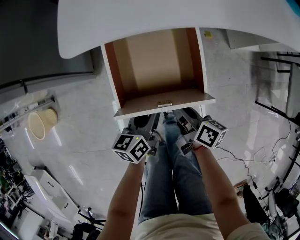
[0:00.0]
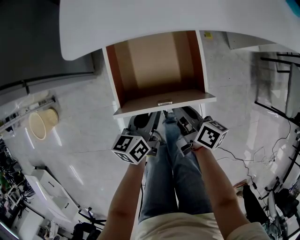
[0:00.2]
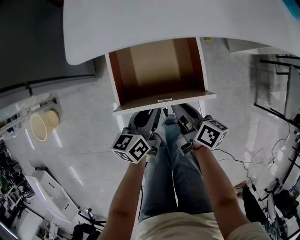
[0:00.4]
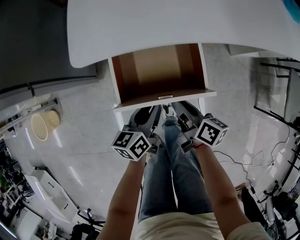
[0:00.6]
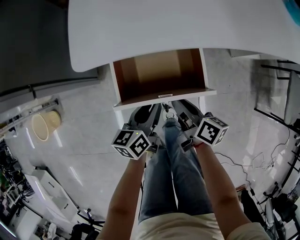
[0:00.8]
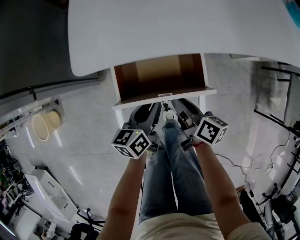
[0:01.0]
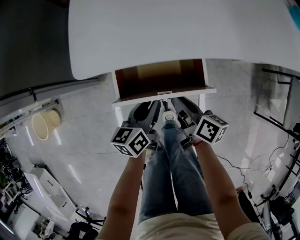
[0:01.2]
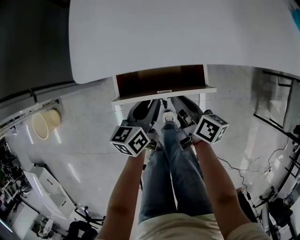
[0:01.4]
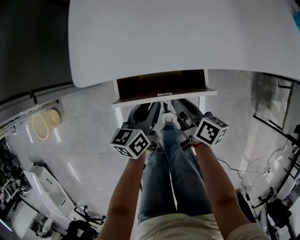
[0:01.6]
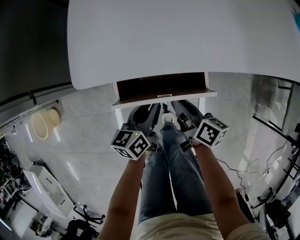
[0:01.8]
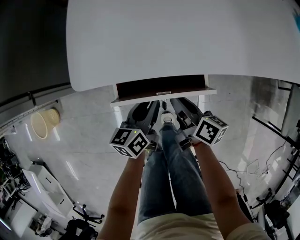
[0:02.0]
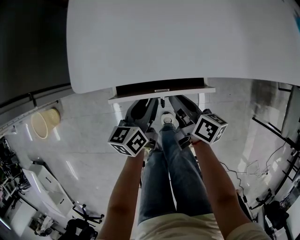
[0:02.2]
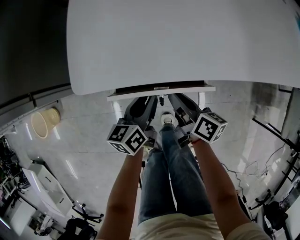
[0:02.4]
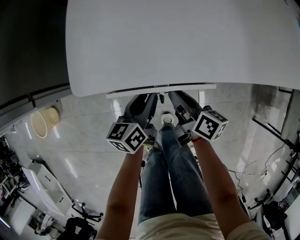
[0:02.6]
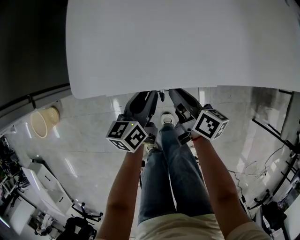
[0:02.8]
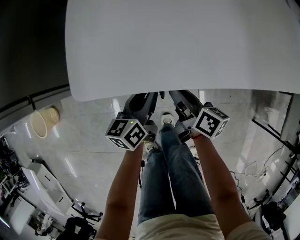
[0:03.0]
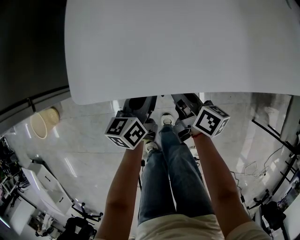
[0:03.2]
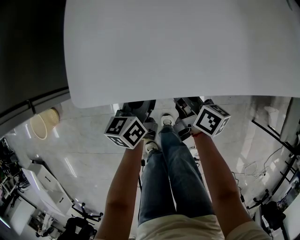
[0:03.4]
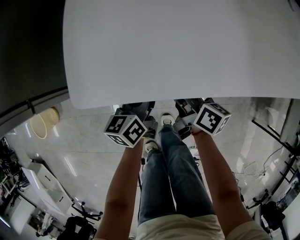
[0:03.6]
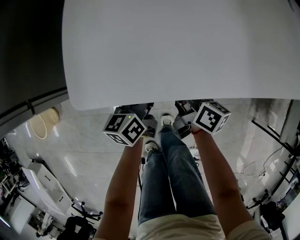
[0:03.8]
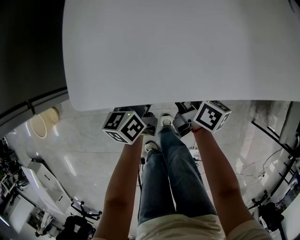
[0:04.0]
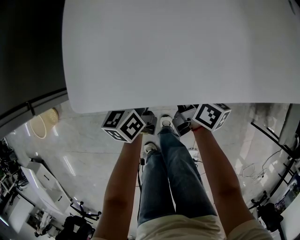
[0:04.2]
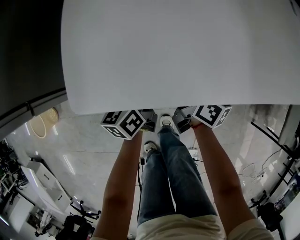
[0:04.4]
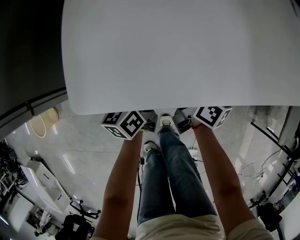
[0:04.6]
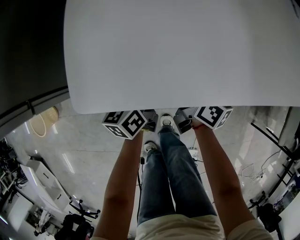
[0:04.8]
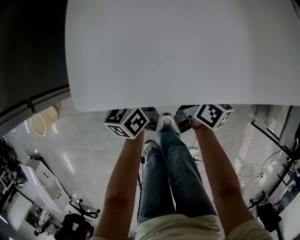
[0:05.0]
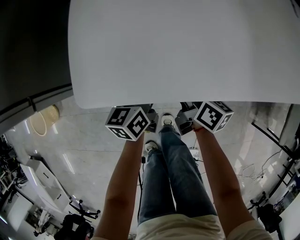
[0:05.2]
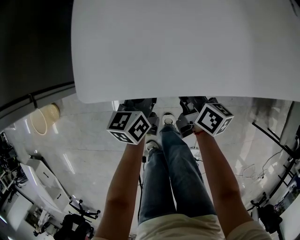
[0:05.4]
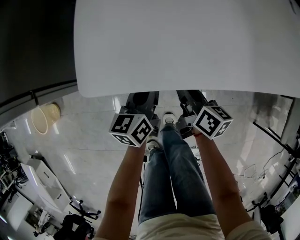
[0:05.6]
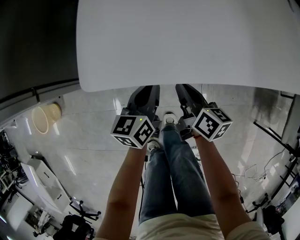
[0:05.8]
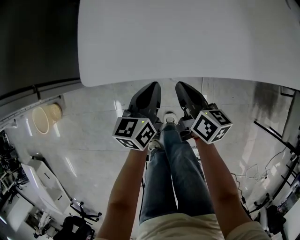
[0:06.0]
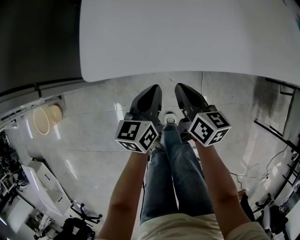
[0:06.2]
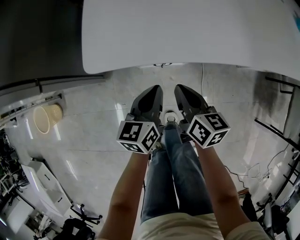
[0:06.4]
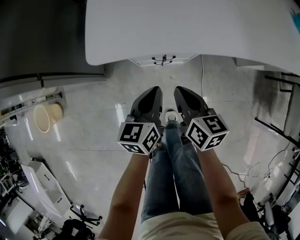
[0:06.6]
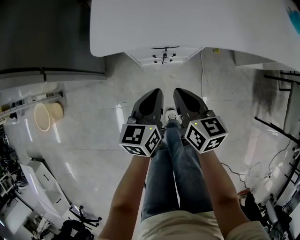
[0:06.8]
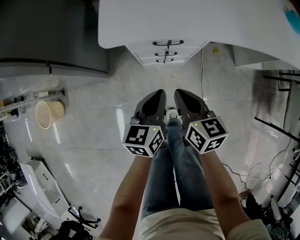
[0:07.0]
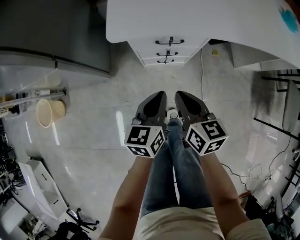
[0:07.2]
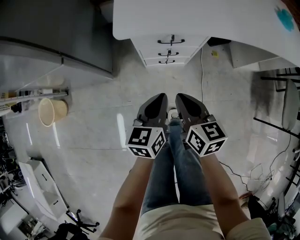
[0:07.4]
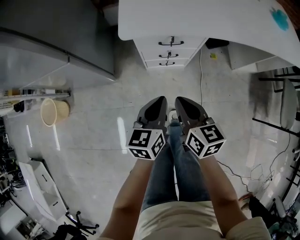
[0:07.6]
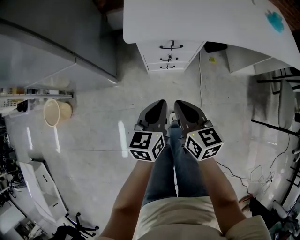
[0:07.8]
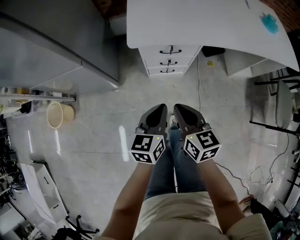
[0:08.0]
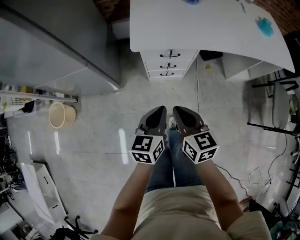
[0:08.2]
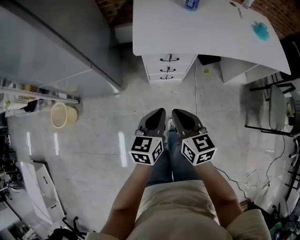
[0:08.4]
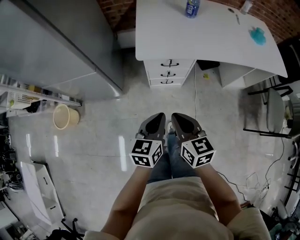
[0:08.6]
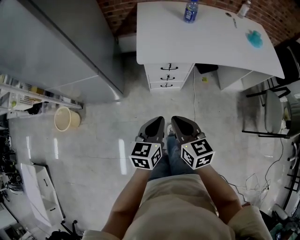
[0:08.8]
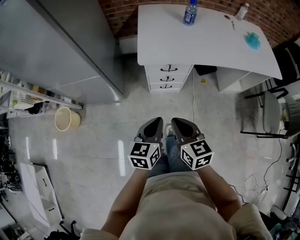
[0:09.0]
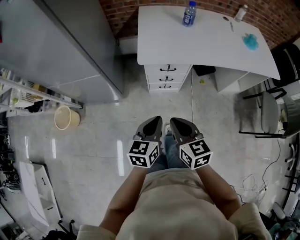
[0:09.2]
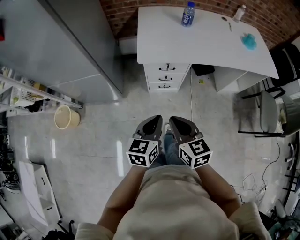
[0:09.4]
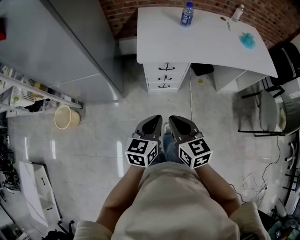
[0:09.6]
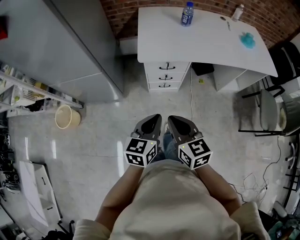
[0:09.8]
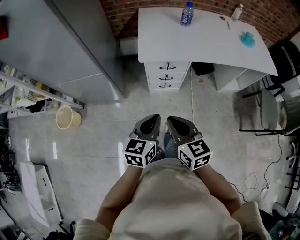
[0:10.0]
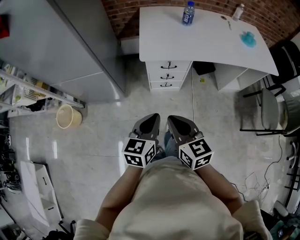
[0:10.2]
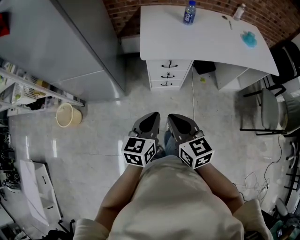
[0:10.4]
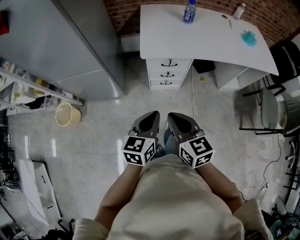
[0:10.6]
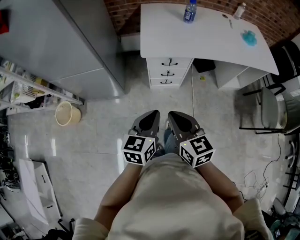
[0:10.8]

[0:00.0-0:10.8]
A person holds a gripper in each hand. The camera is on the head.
0.0 to 1.6 s: The two grippers go approximately 10 cm forward.
1.6 to 3.0 s: The grippers both shift forward by about 10 cm.
3.0 to 4.6 s: The right gripper ends up some 5 cm from where it was. Meanwhile the left gripper ends up about 5 cm from where it was.
4.6 to 6.2 s: Both grippers travel together backward, roughly 10 cm. The left gripper closes its fingers. The right gripper closes up.
6.2 to 7.8 s: The grippers both shift backward and upward by approximately 20 cm.
7.8 to 9.2 s: Both grippers travel together upward and backward, about 20 cm.
9.2 to 10.8 s: The left gripper moves roughly 5 cm. Meanwhile the right gripper changes place by roughly 5 cm.

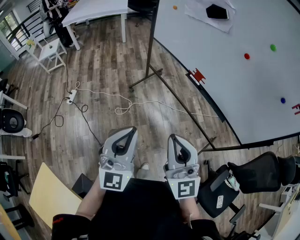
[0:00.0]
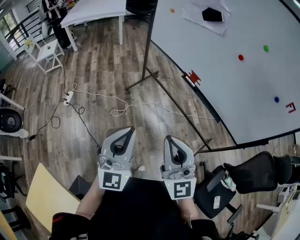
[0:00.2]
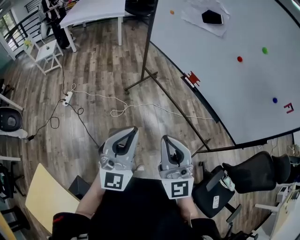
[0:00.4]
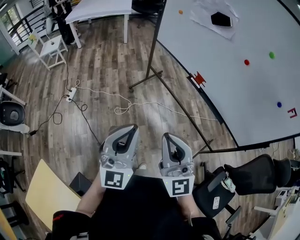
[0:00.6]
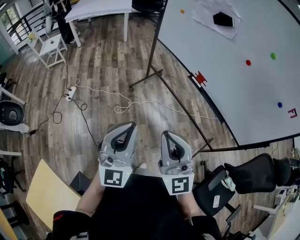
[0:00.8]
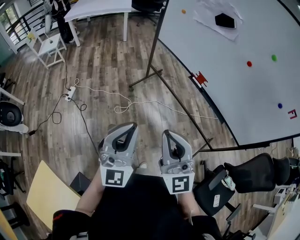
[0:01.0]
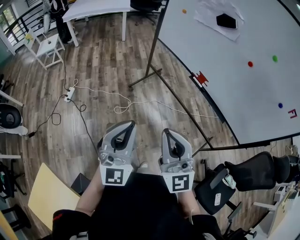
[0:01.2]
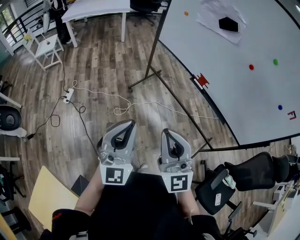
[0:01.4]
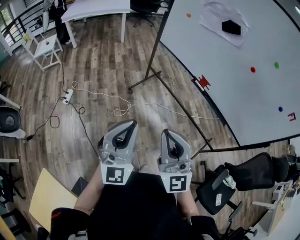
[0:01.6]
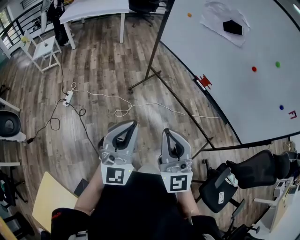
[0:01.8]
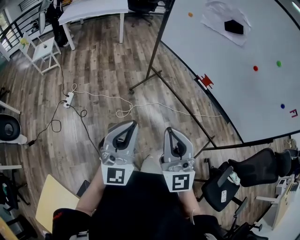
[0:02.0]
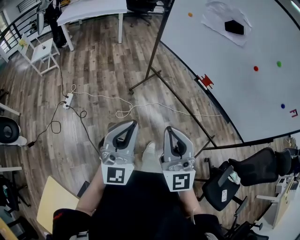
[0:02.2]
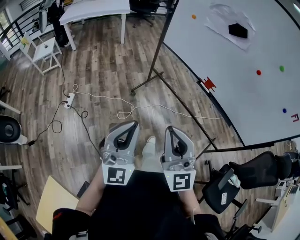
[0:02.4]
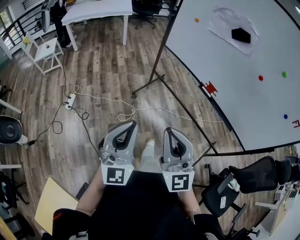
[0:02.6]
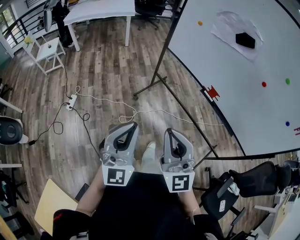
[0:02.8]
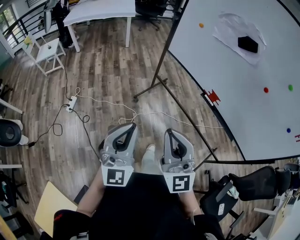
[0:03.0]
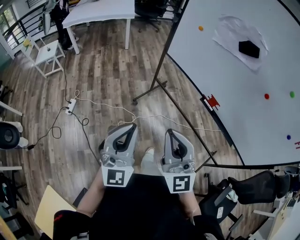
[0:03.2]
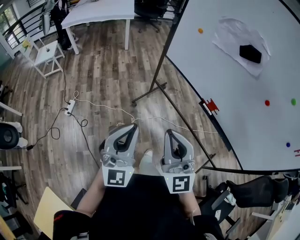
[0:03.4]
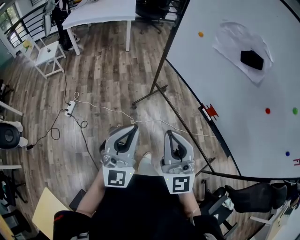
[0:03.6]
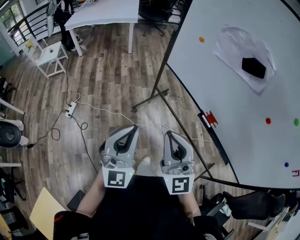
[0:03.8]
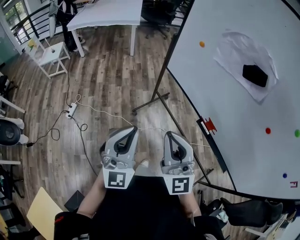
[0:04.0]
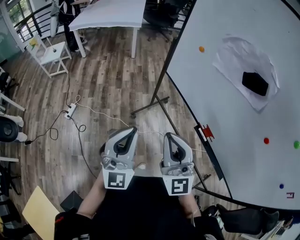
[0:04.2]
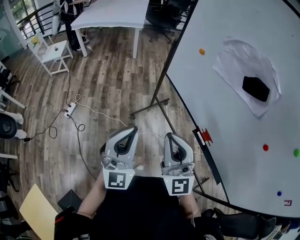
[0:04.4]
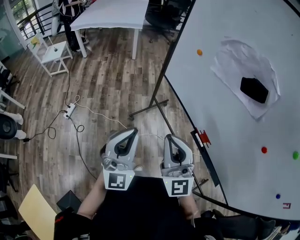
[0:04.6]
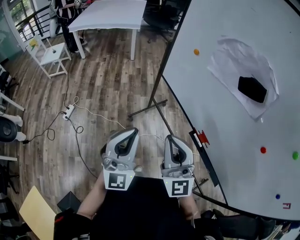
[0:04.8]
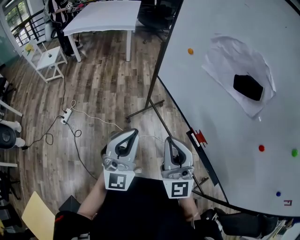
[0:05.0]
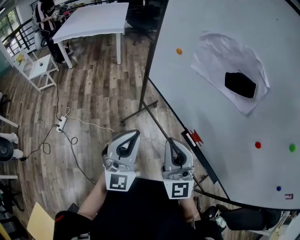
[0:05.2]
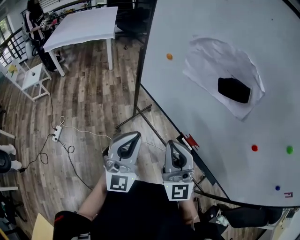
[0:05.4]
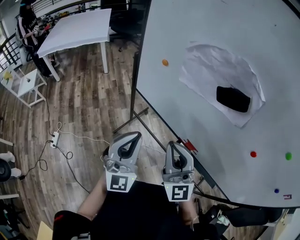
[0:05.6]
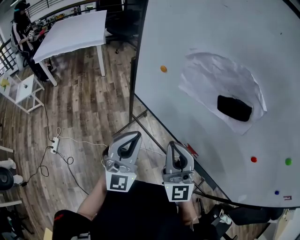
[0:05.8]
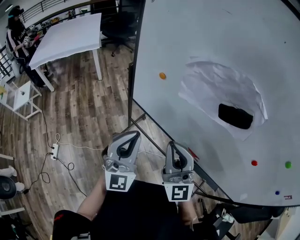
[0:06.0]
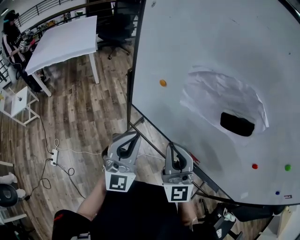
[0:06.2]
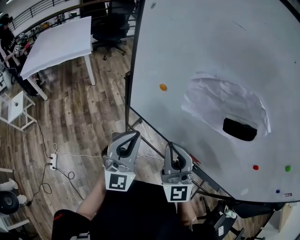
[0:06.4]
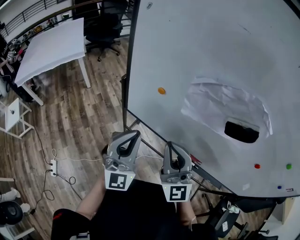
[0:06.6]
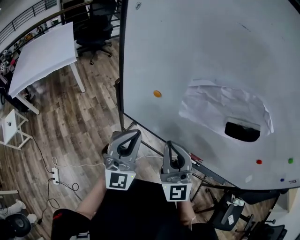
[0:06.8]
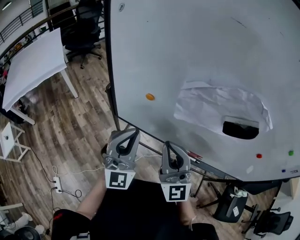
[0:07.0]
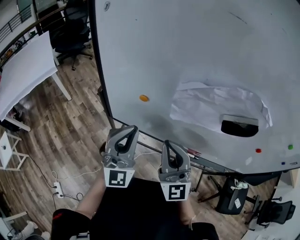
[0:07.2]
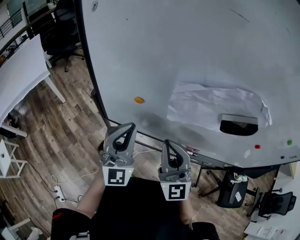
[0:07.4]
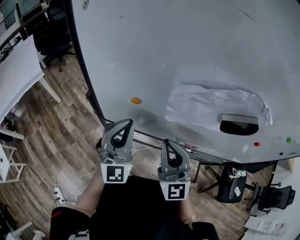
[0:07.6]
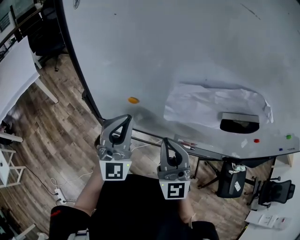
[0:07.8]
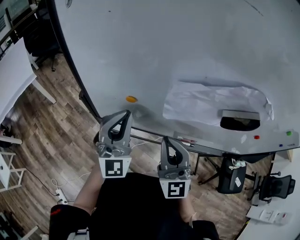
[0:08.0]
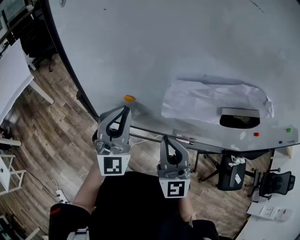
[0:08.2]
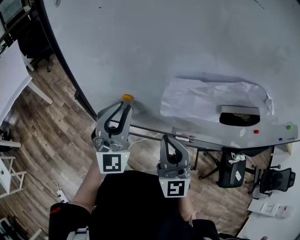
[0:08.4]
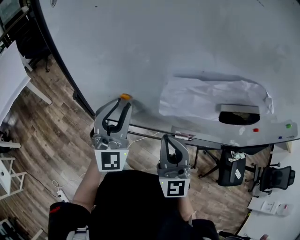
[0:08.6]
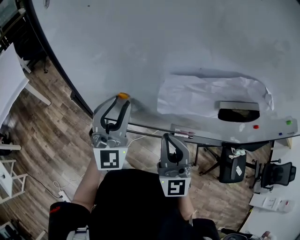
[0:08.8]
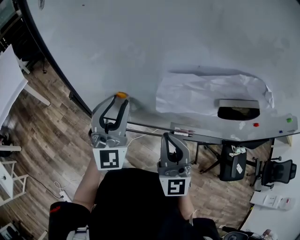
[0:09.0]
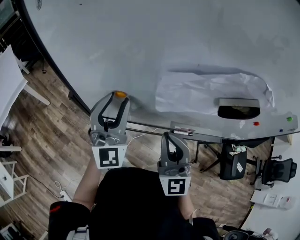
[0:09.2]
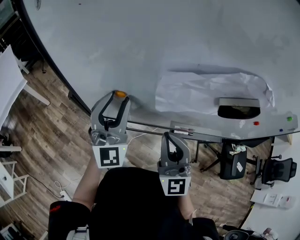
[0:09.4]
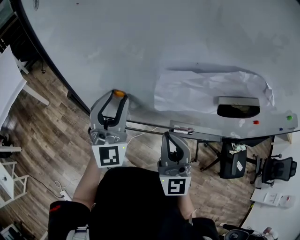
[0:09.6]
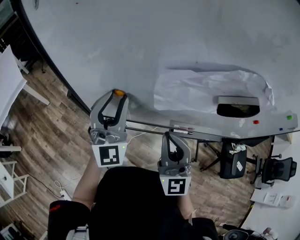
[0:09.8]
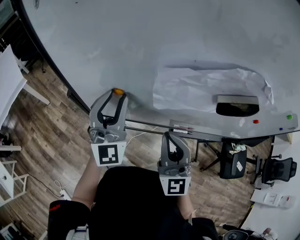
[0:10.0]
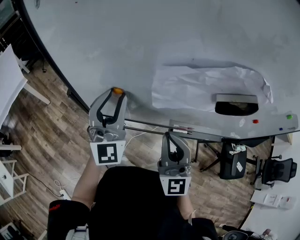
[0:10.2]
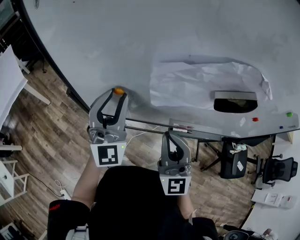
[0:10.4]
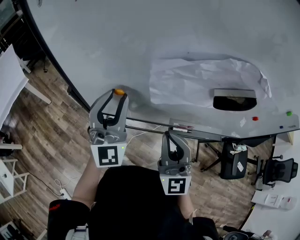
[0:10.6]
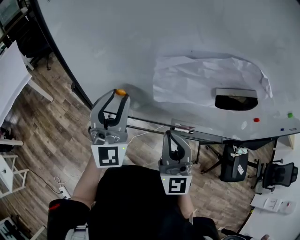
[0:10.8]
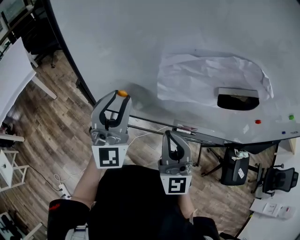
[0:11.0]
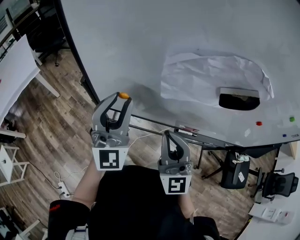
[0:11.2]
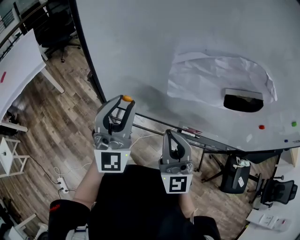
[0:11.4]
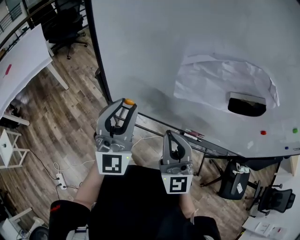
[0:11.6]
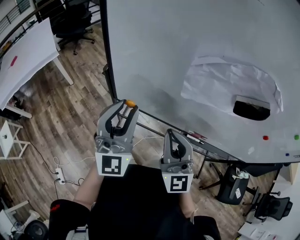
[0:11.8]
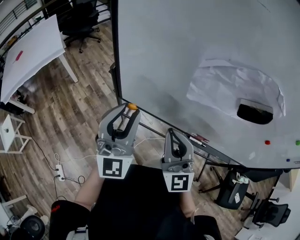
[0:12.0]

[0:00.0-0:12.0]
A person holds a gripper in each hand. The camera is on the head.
0.0 to 1.6 s: The grippers both shift to the left by some 15 cm.
1.6 to 3.0 s: Both grippers move forward, approximately 10 cm.
3.0 to 4.4 s: Both grippers travel together forward and to the right, some 25 cm.
4.4 to 6.0 s: The two grippers go about 20 cm forward and to the right. The right gripper swivels about 20 degrees.
6.0 to 7.6 s: The left gripper heads forward, covering approximately 20 cm, and swivels some 20 degrees. The right gripper shifts approximately 10 cm forward, and turns by some 30 degrees.
7.6 to 9.0 s: The left gripper heads forward, covering approximately 5 cm, and opens.
9.0 to 10.4 s: The grippers make only small movements.
10.4 to 12.0 s: The right gripper travels to the left by about 5 cm; the left gripper moves backward and to the left, some 15 cm.

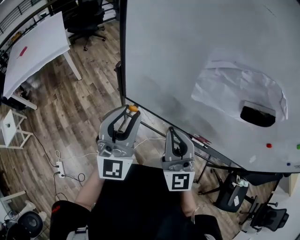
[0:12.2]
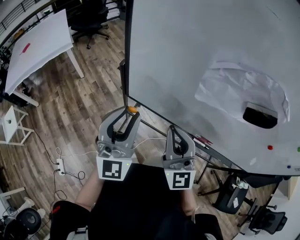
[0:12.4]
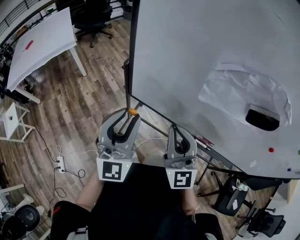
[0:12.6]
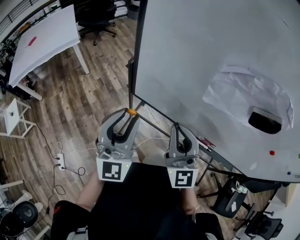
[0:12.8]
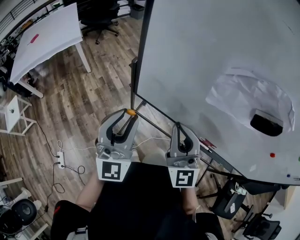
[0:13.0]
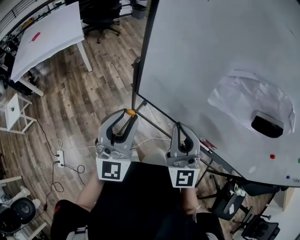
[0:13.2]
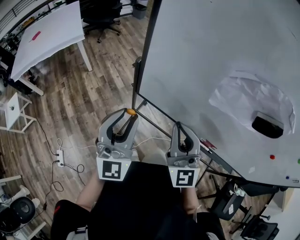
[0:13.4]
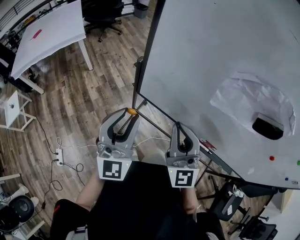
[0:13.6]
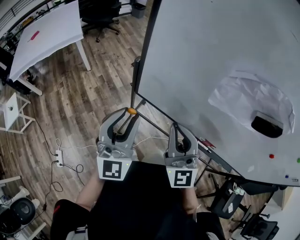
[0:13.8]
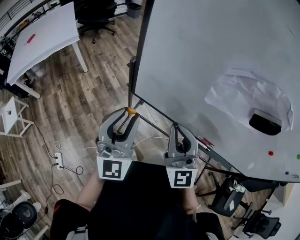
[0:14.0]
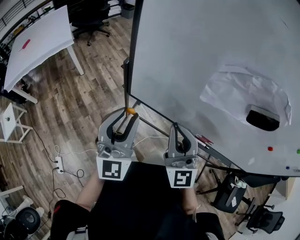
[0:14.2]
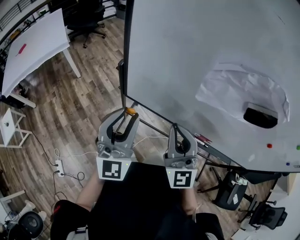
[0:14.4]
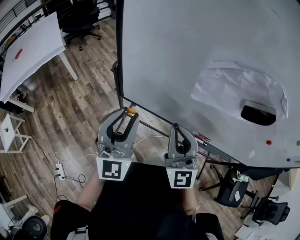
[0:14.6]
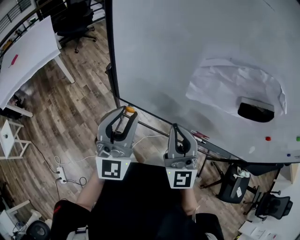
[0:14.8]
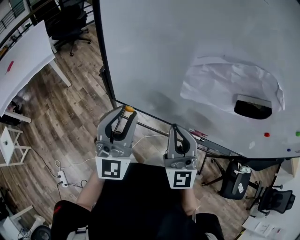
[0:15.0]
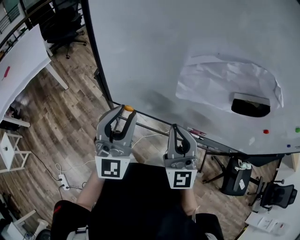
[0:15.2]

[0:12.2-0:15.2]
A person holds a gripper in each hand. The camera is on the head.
12.2 to 13.8 s: The left gripper goes some 5 cm to the left.
13.8 to 15.2 s: The right gripper goes roughly 10 cm to the right; the left gripper heads to the right and forward, covering some 10 cm.
